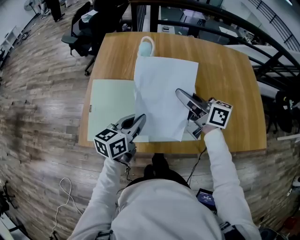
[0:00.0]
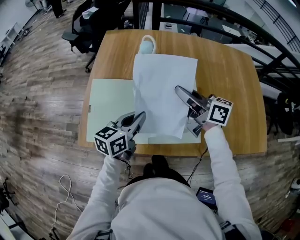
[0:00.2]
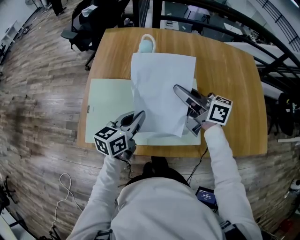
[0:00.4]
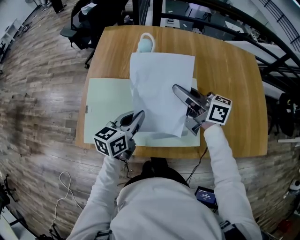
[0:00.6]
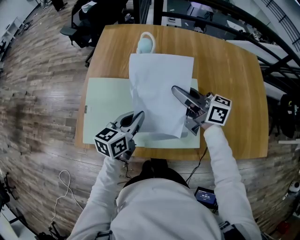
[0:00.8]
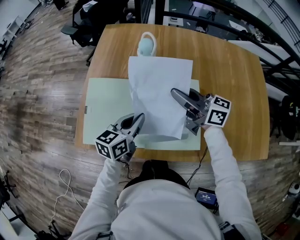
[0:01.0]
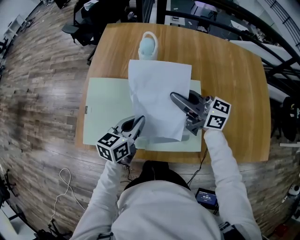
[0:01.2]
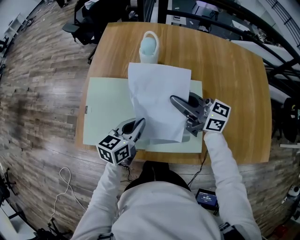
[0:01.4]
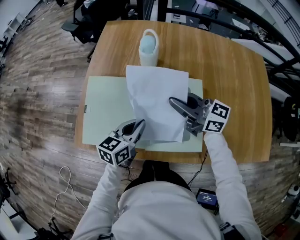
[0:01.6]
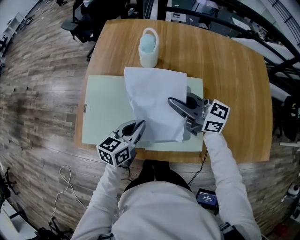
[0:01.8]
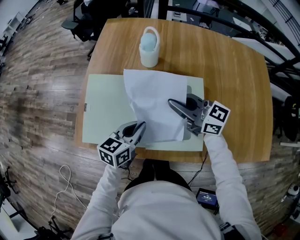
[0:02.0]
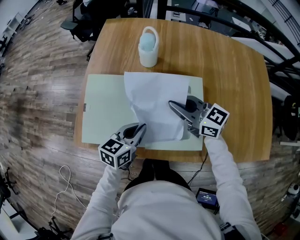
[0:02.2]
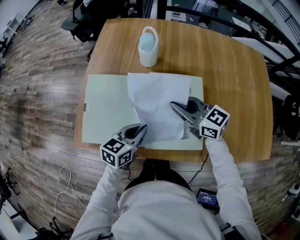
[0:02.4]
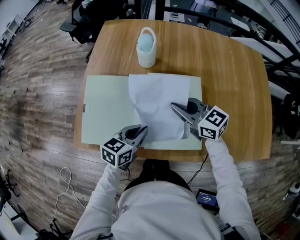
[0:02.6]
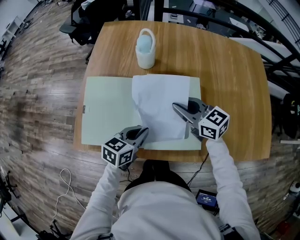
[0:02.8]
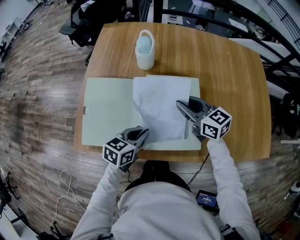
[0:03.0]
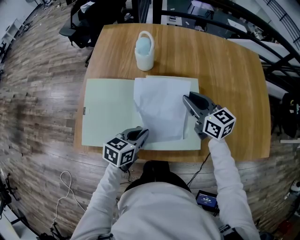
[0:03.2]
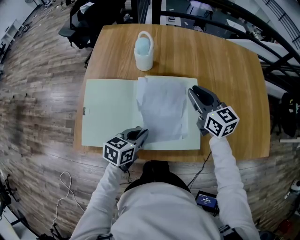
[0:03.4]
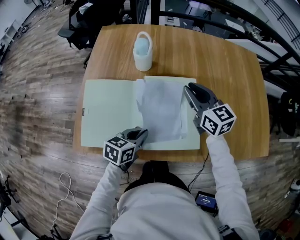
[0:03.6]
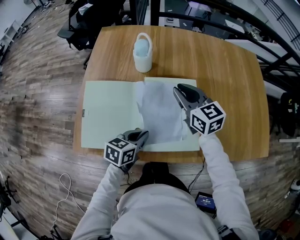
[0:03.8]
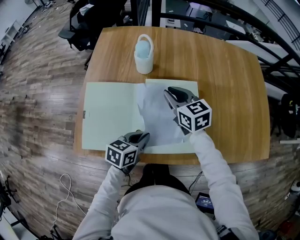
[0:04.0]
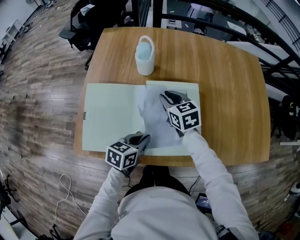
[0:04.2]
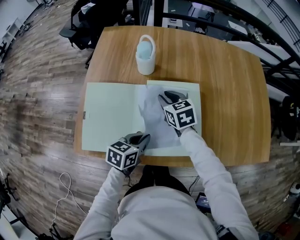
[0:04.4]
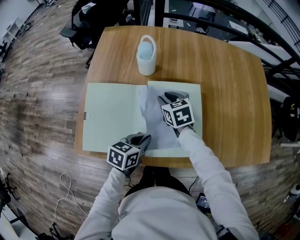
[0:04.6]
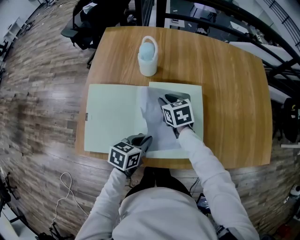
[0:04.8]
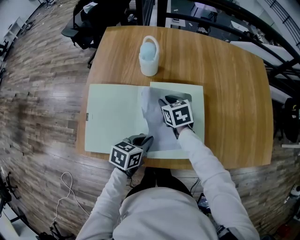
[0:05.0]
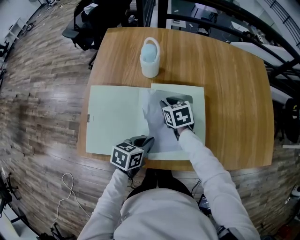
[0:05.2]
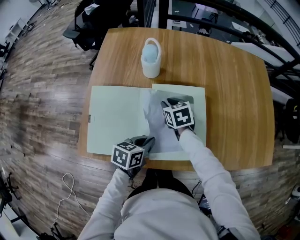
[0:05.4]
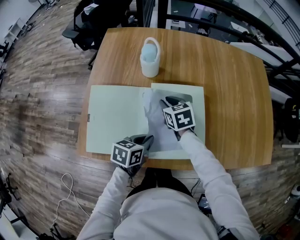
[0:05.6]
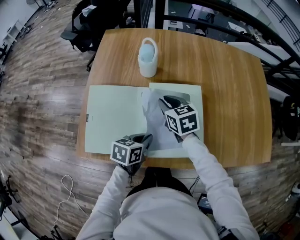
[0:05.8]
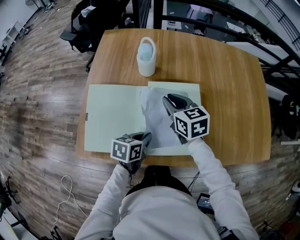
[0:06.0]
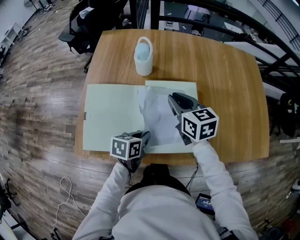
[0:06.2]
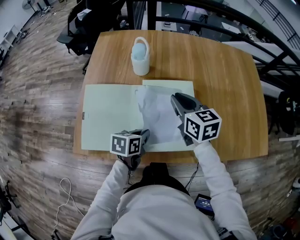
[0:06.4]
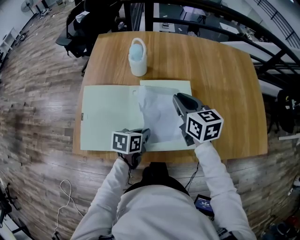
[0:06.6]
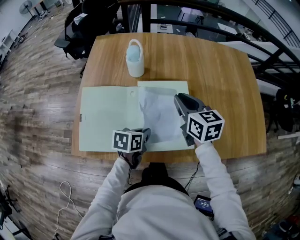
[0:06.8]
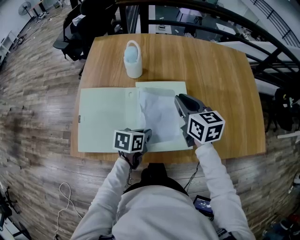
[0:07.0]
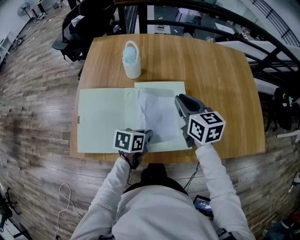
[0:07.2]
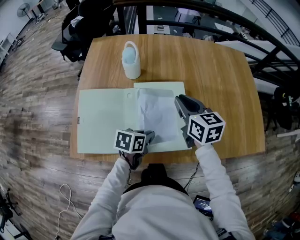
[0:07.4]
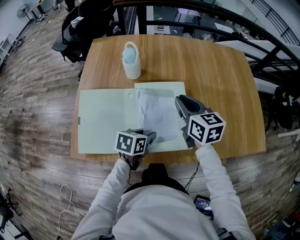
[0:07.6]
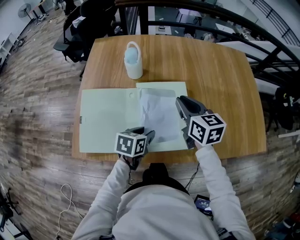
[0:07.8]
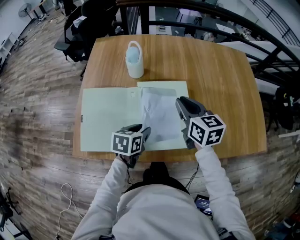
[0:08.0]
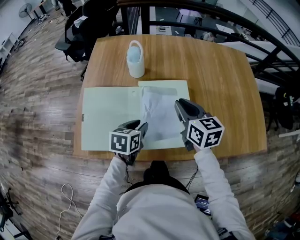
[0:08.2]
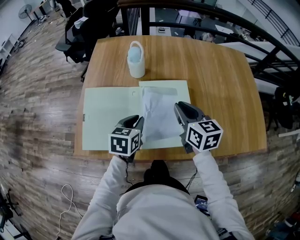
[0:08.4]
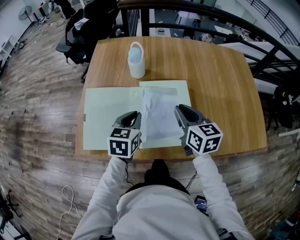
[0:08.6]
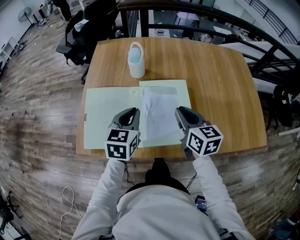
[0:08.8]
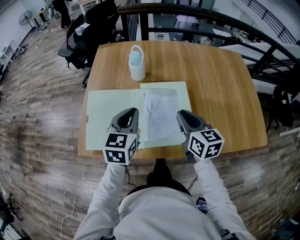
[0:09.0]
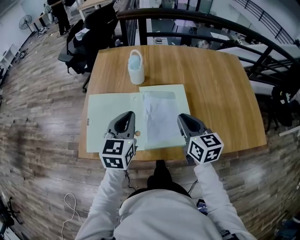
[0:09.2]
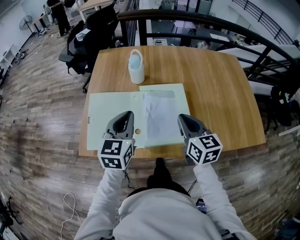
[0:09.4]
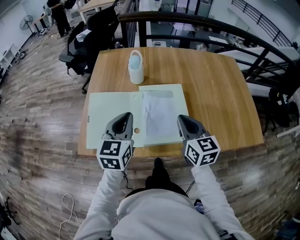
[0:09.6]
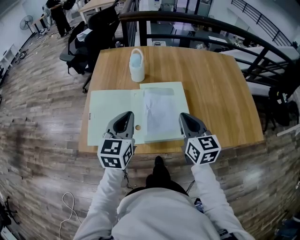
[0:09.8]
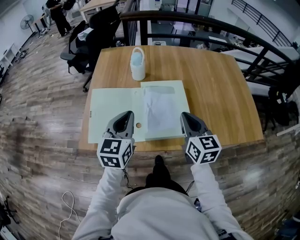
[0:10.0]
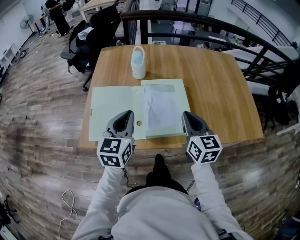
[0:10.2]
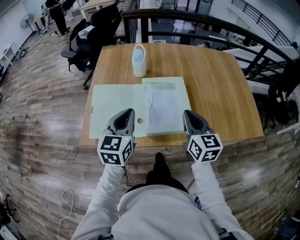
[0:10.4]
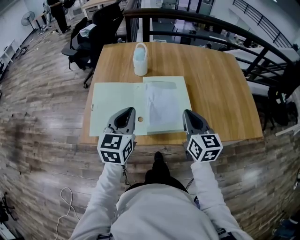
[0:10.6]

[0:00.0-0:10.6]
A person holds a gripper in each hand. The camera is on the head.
0.0 to 1.6 s: The left gripper shifts about 5 cm downward; the right gripper shifts by about 5 cm, and changes its angle by some 30 degrees.
1.6 to 3.0 s: The left gripper changes place by about 5 cm, while the right gripper travels downward and to the right by roughly 10 cm, and swivels roughly 30 degrees.
3.0 to 4.6 s: The right gripper is displaced downward, to the left and forward by roughly 10 cm, and changes its angle by some 30 degrees.
4.6 to 6.0 s: The right gripper goes roughly 5 cm upward.
6.0 to 7.6 s: The right gripper shifts about 10 cm to the right. Meanwhile the left gripper goes roughly 5 cm to the right, and opens its fingers.
7.6 to 9.0 s: The left gripper is displaced upward and to the left by about 20 cm, turns by approximately 40 degrees, and closes; the right gripper travels backward by roughly 10 cm.
9.0 to 10.6 s: The grippers both shift backward by about 10 cm.

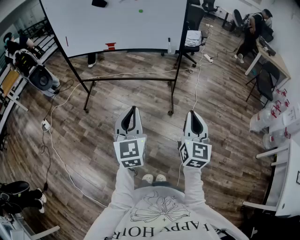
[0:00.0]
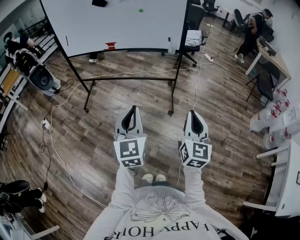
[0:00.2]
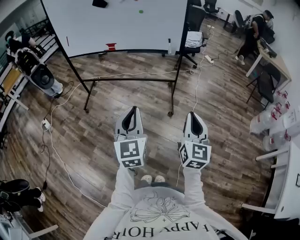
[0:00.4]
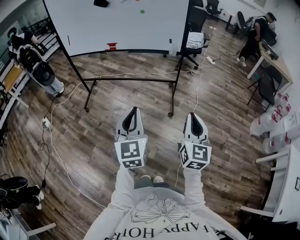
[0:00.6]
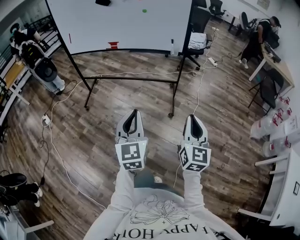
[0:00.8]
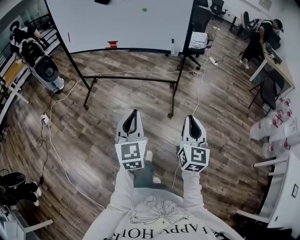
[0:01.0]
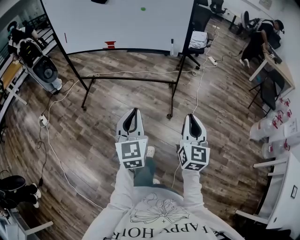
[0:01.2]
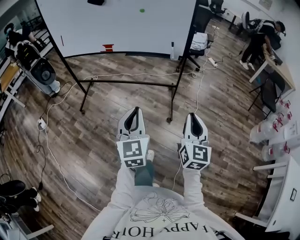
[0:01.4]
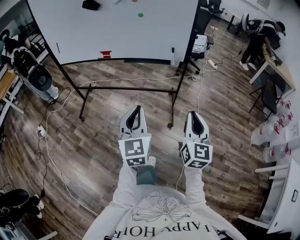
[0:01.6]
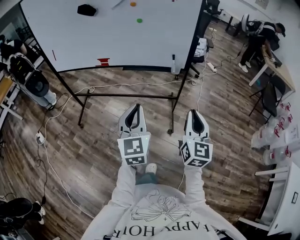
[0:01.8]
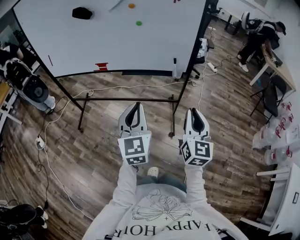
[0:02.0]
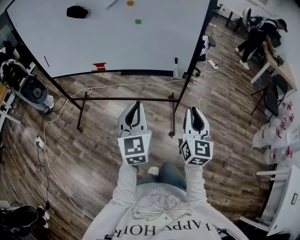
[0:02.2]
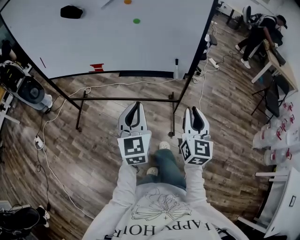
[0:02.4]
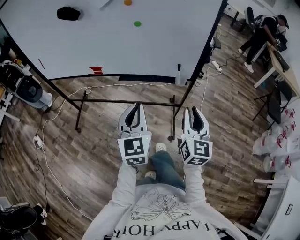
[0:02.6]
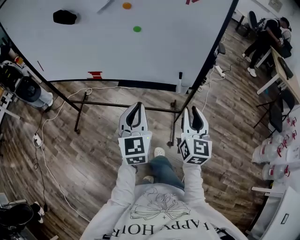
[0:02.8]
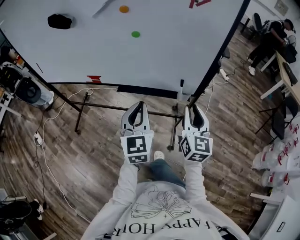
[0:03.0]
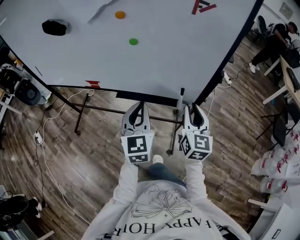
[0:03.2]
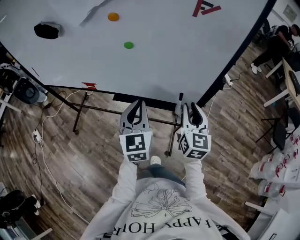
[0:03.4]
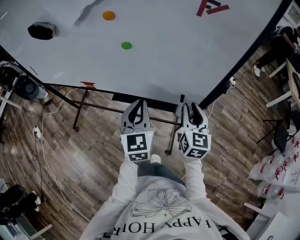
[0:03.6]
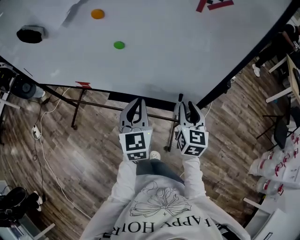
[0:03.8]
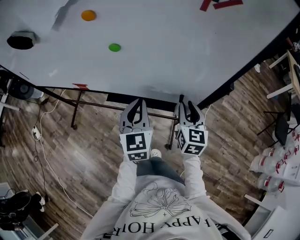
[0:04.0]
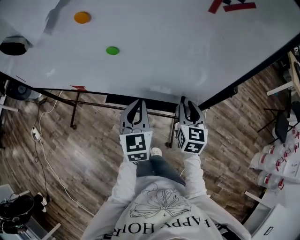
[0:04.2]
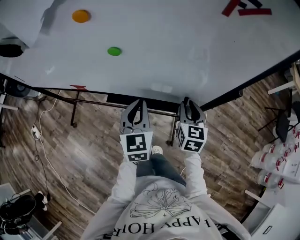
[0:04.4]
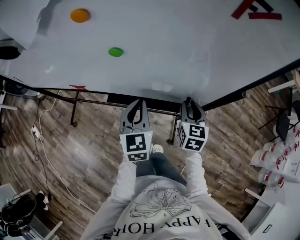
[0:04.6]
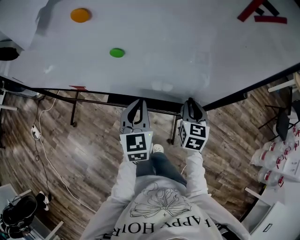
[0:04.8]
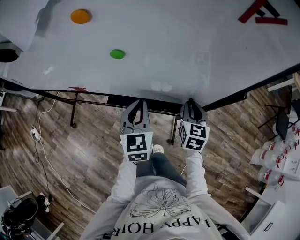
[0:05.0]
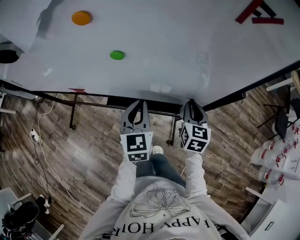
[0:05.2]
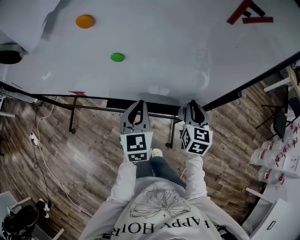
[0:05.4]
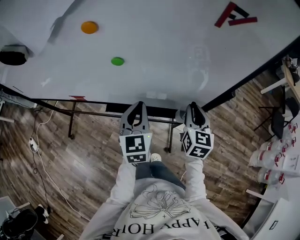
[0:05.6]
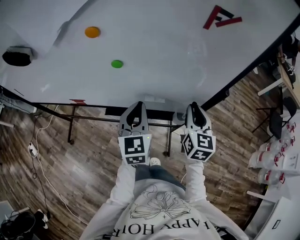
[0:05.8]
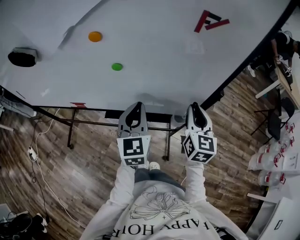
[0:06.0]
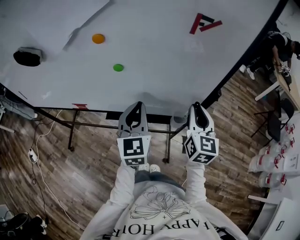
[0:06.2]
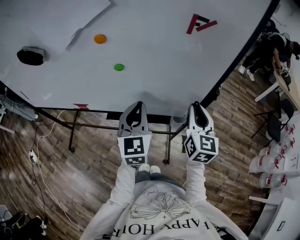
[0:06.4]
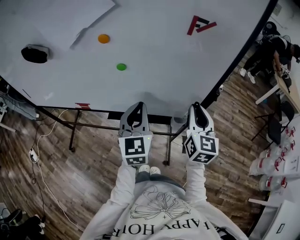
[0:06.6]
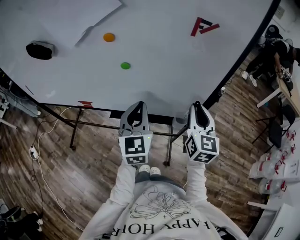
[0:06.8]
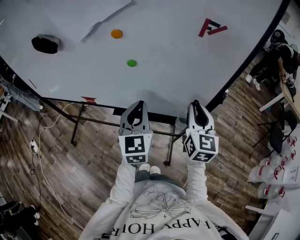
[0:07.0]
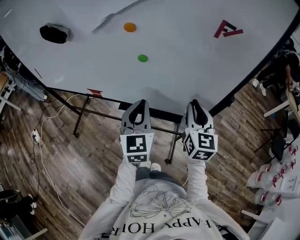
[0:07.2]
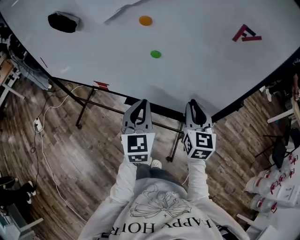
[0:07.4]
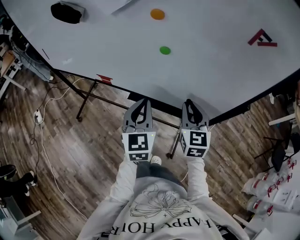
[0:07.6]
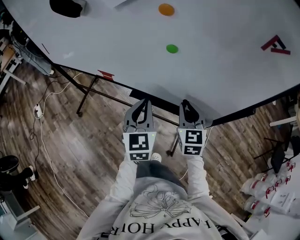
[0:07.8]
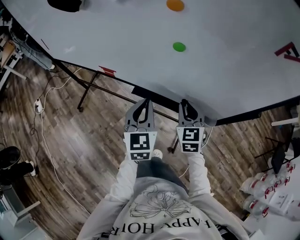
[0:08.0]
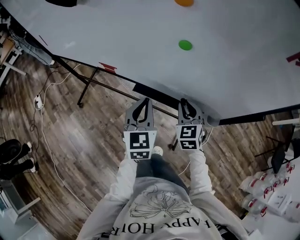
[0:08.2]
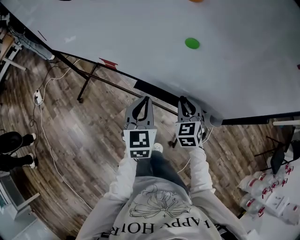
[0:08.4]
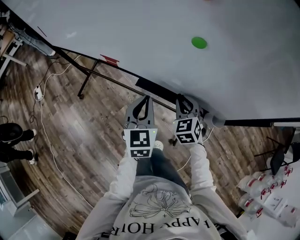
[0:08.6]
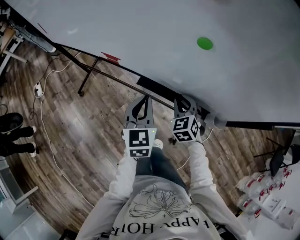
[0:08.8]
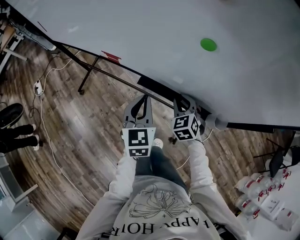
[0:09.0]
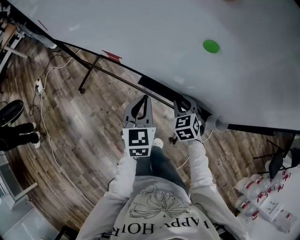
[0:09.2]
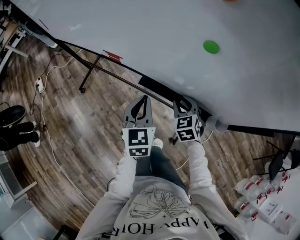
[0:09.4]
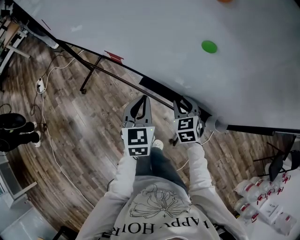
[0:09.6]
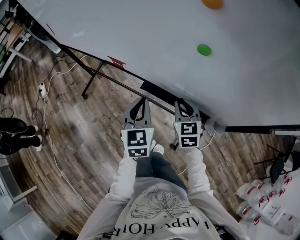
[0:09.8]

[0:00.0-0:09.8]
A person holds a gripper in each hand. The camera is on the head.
0.0 to 1.4 s: The grippers both shift forward by approximately 15 cm.
1.4 to 2.8 s: The pair of grippers is taken forward, some 40 cm.
2.8 to 4.2 s: The right gripper heads forward and downward, covering roughly 30 cm. Meanwhile the left gripper heads forward, covering approximately 25 cm.
4.2 to 5.6 s: The grippers stay close to where they were, moving slightly.
5.6 to 7.0 s: Both grippers travel together upward, approximately 10 cm.
7.0 to 8.4 s: The right gripper moves downward and to the left, roughly 25 cm, and turns by approximately 40 degrees, while the left gripper moves downward and to the left, some 15 cm.

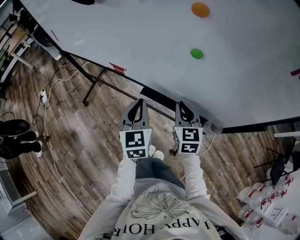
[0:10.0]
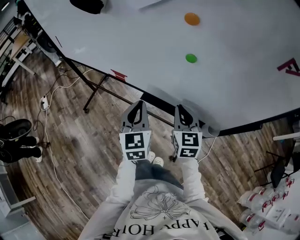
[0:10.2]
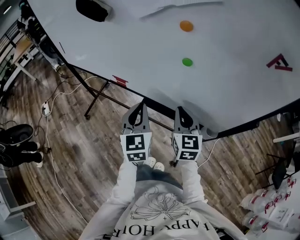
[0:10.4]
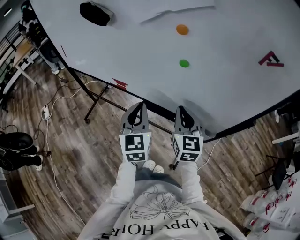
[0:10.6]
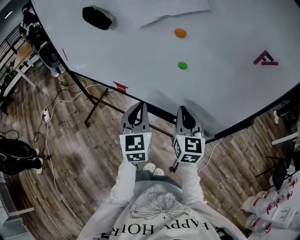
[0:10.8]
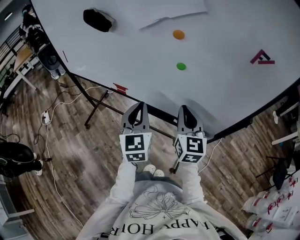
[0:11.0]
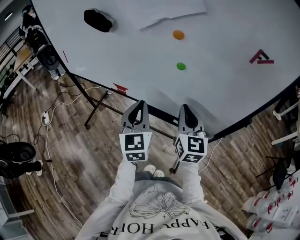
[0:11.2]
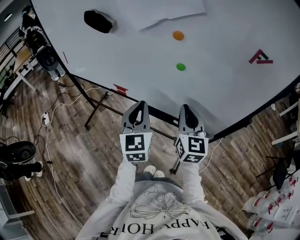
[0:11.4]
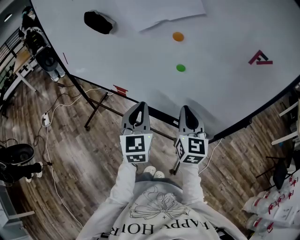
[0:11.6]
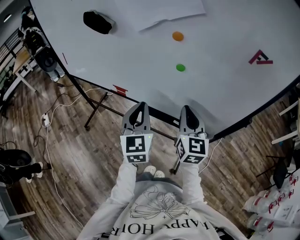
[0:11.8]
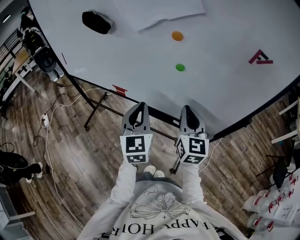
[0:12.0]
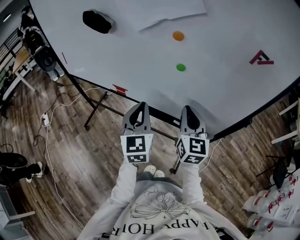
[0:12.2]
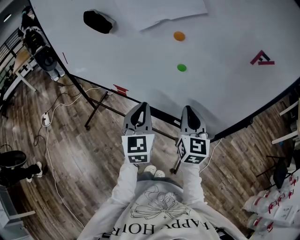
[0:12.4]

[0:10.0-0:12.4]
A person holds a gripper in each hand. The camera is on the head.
10.0 to 11.2 s: Both grippers move upward, approximately 15 cm. The right gripper turns by some 20 degrees.
11.2 to 12.4 s: The two grippers keep their place.

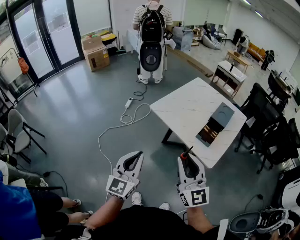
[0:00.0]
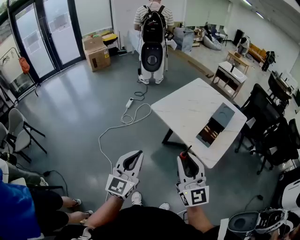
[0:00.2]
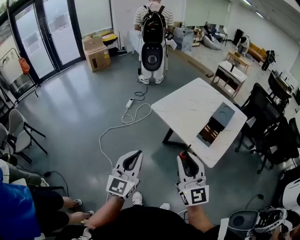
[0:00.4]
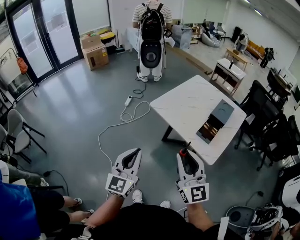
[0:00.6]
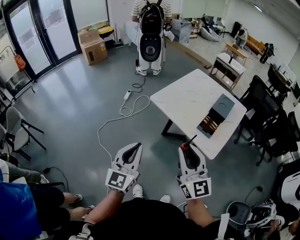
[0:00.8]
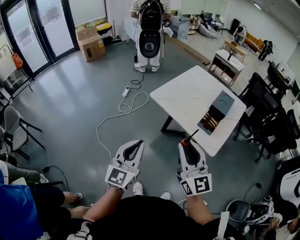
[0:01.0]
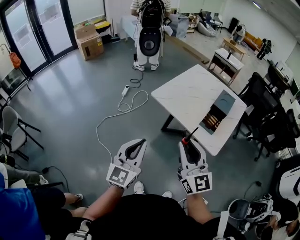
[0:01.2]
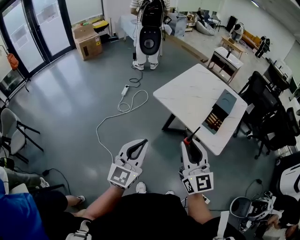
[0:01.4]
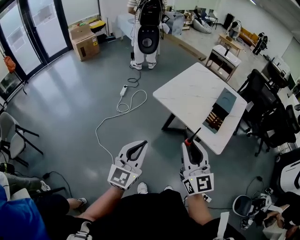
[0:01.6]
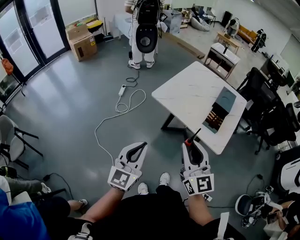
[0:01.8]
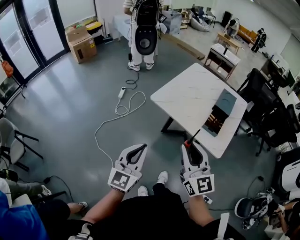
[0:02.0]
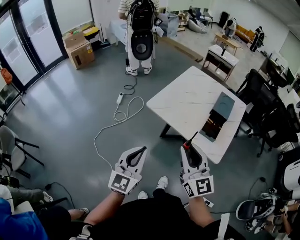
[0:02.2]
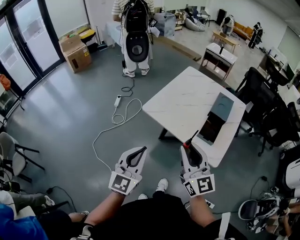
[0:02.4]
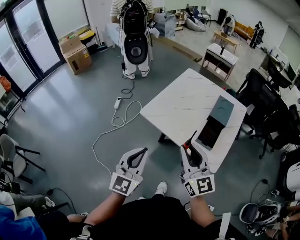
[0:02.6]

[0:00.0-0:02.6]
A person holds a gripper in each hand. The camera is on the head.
0.0 to 1.2 s: The right gripper shifts some 5 cm to the left.
1.2 to 2.6 s: Both grippers move forward, about 15 cm.
